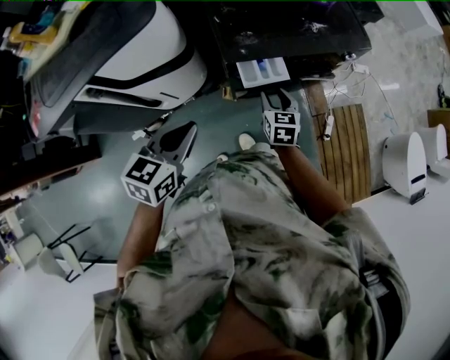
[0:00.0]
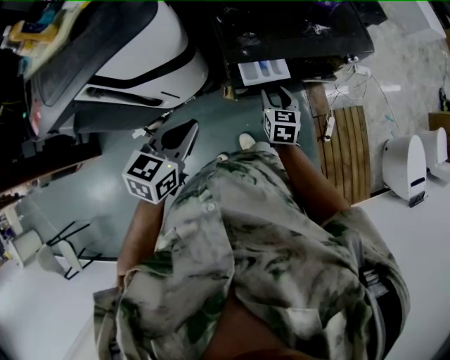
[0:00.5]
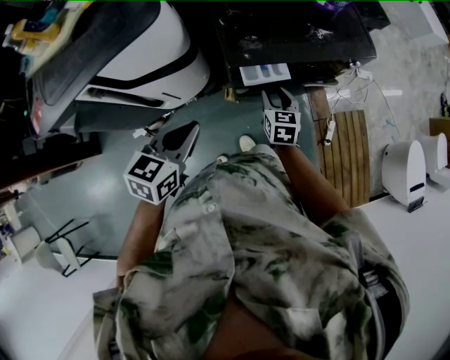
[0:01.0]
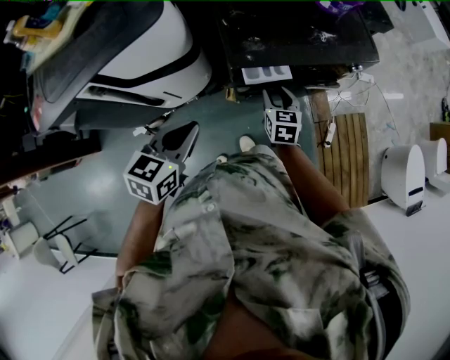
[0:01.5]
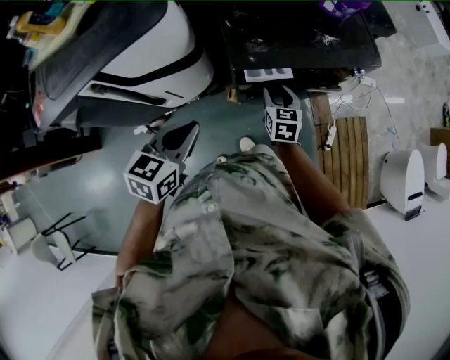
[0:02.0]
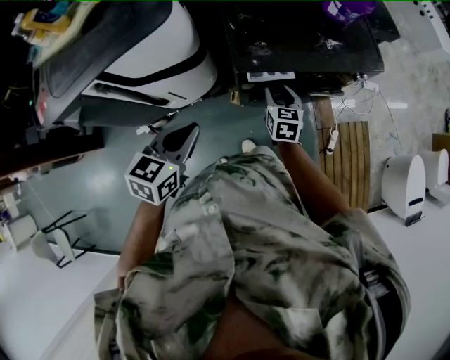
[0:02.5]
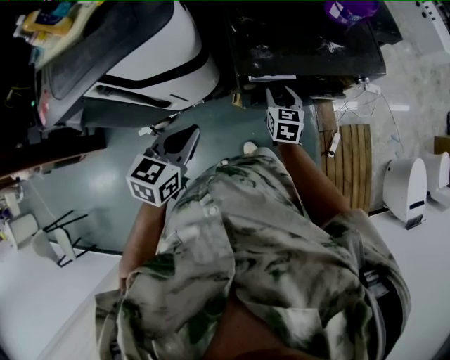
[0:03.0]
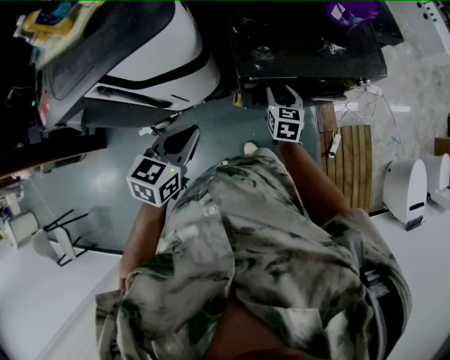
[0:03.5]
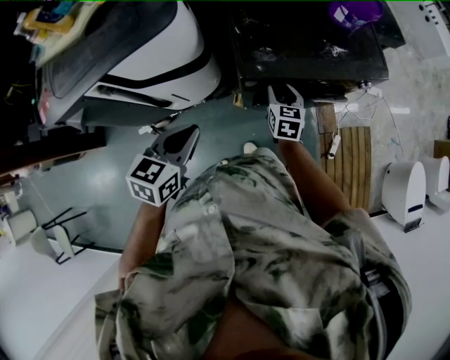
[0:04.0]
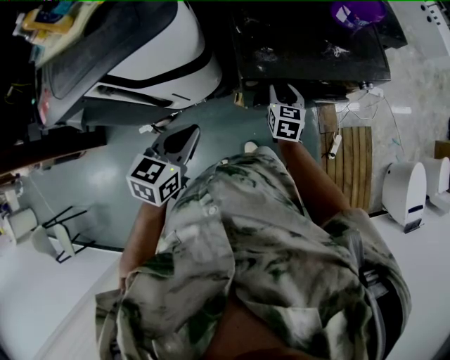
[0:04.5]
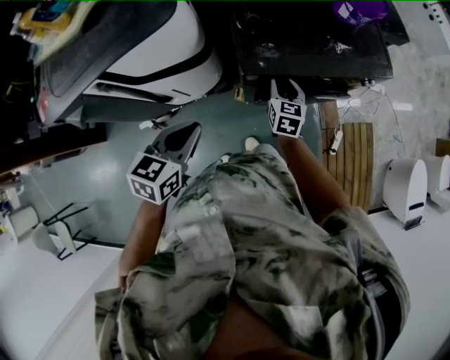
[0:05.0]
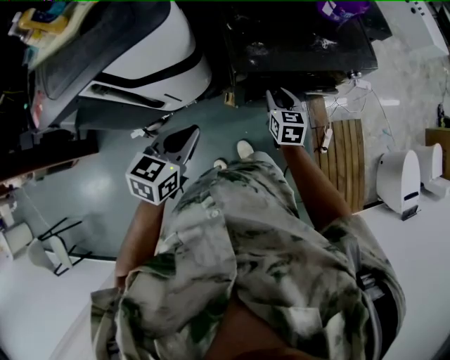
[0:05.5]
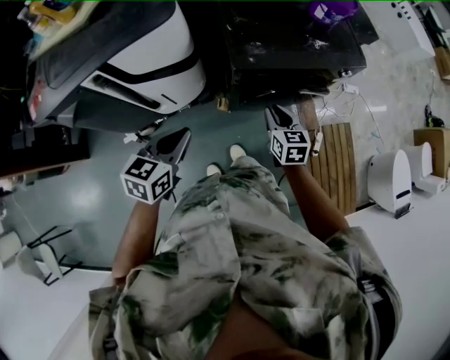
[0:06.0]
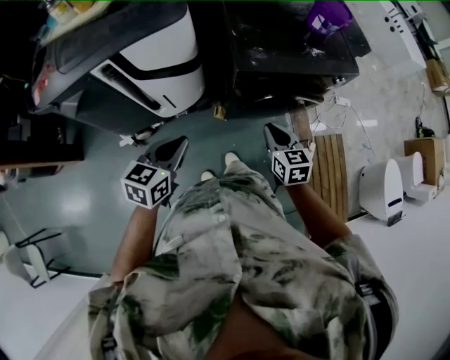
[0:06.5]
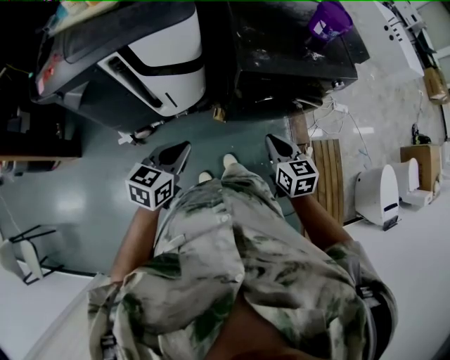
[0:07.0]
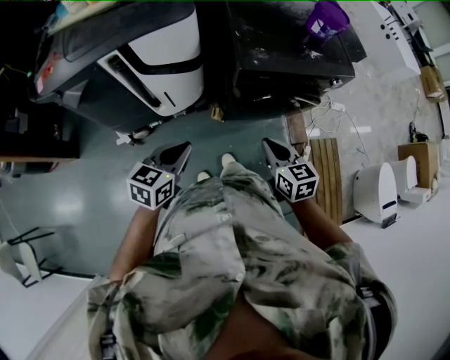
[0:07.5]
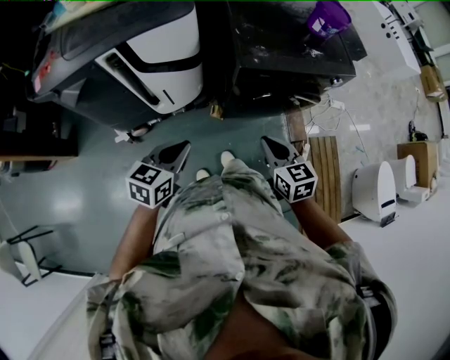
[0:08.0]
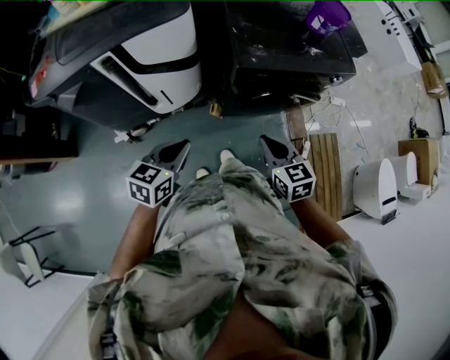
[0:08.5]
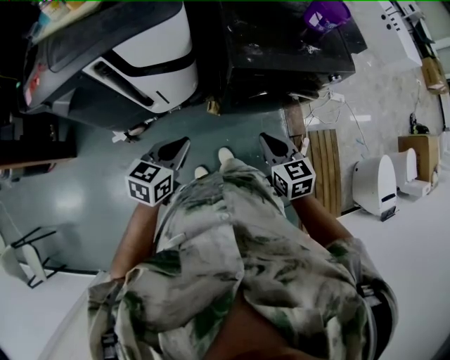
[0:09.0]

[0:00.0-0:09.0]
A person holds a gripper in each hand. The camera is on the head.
0:00.0 to 0:02.0: The grippers make only small movements.
0:02.0 to 0:04.5: There are only small adjustments of the grippers.
0:04.5 to 0:07.0: The right gripper shifts roughly 30 cm backward, and closes. The left gripper heads backward, covering approximately 20 cm.
0:07.0 to 0:09.0: The grippers stay close to where they were, moving slightly.

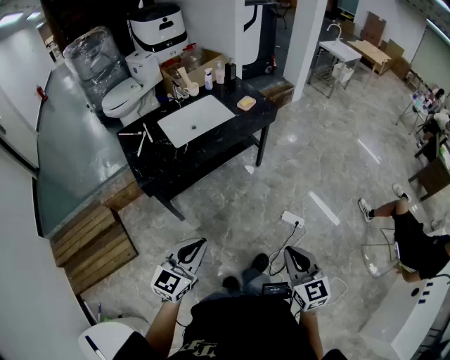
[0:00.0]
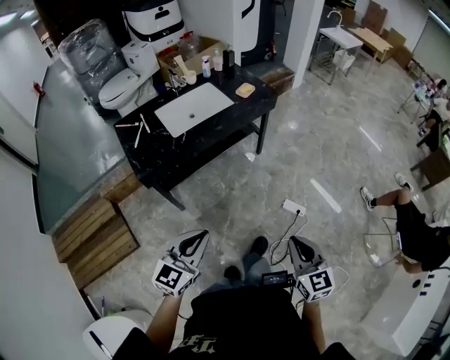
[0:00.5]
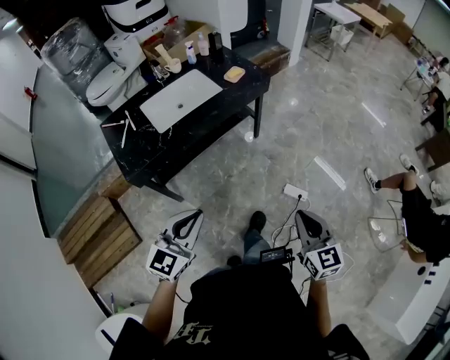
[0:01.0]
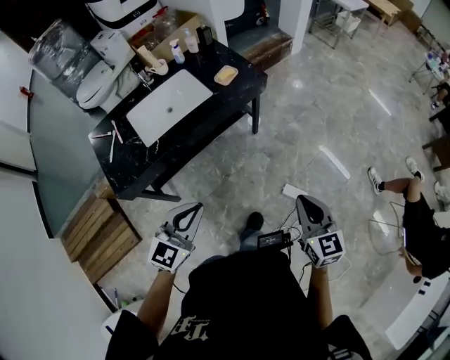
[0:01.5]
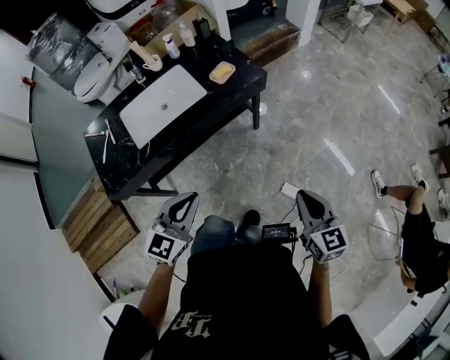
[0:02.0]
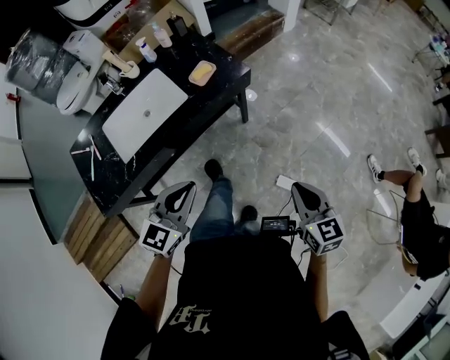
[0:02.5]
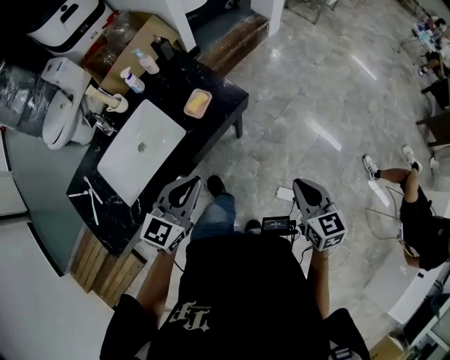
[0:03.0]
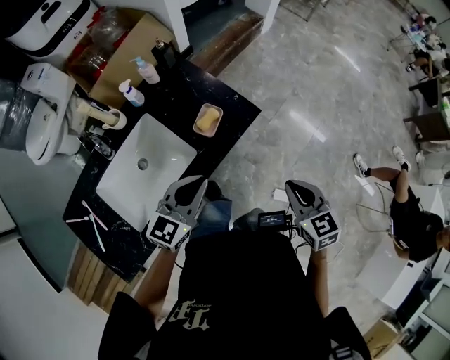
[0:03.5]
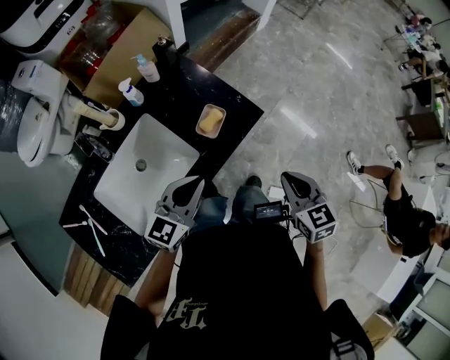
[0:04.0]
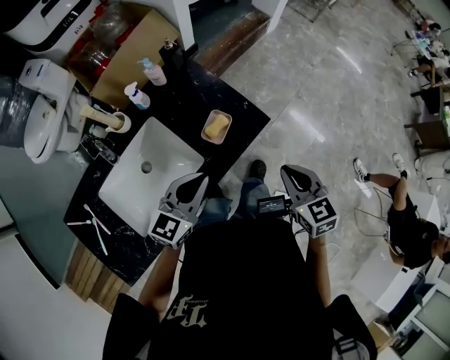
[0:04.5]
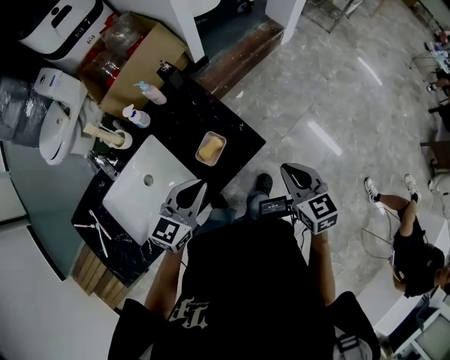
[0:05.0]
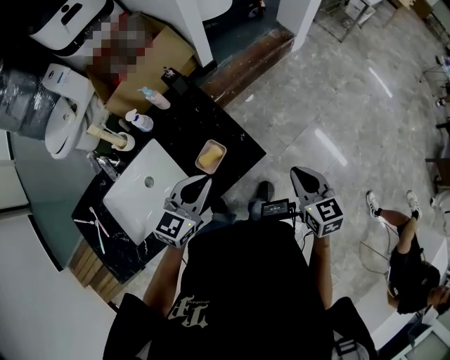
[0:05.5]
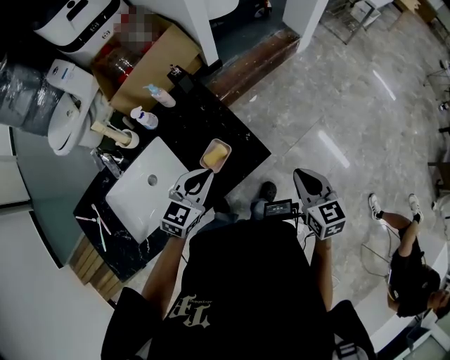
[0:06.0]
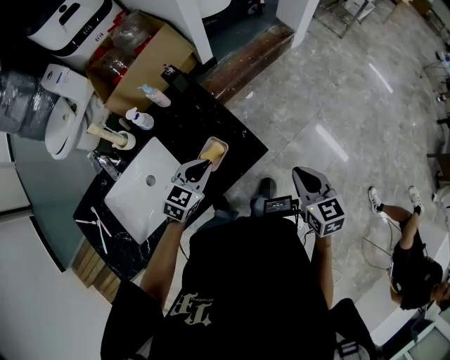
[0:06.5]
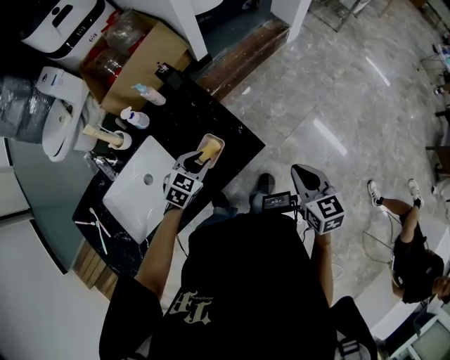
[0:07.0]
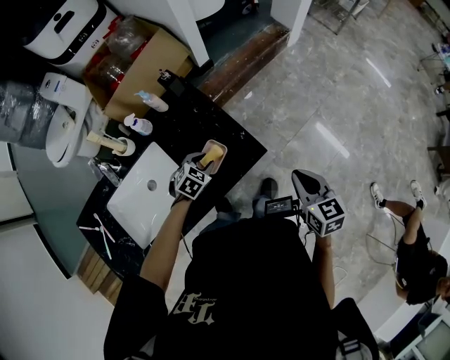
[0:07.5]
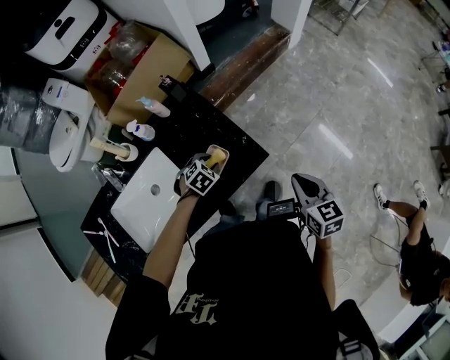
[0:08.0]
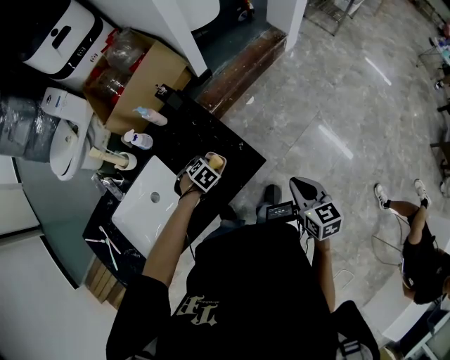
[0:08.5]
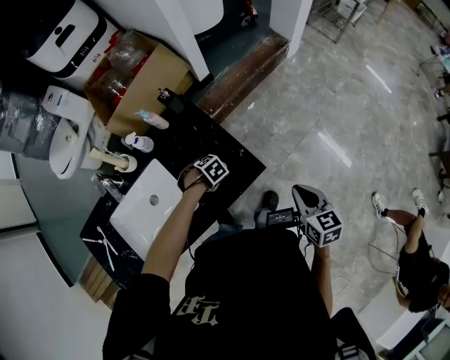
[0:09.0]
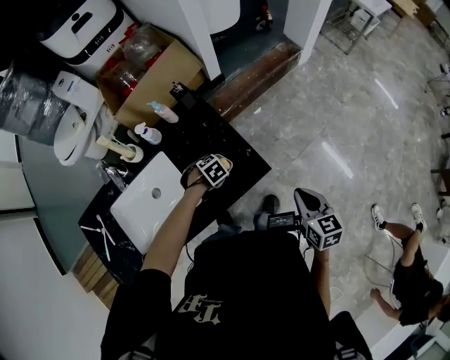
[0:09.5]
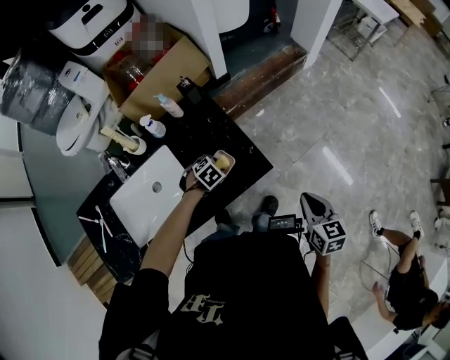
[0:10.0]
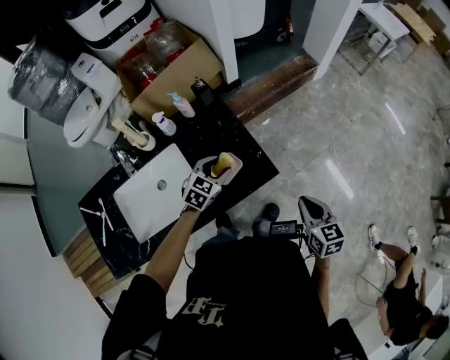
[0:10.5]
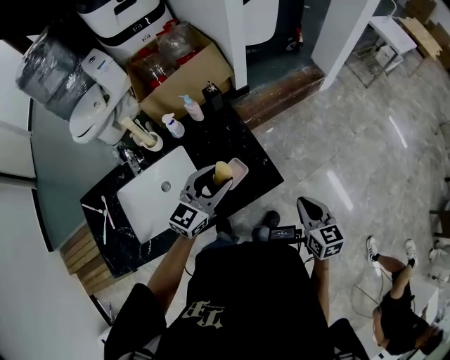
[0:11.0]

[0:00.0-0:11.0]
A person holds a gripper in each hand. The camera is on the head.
0:00.0 to 0:02.0: The right gripper moves forward and to the right, roughly 40 cm. Meanwhile the left gripper travels forward by roughly 35 cm.
0:02.0 to 0:03.5: The left gripper travels forward by approximately 35 cm, and changes its angle by some 20 degrees, while the right gripper heads forward and to the left, covering about 30 cm.
0:03.5 to 0:05.5: The two grippers go approximately 20 cm forward.
0:05.5 to 0:07.5: The left gripper goes about 20 cm downward, tilts its fingers some 40 degrees downward, and opens up.
0:07.5 to 0:09.0: The left gripper moves downward, some 5 cm, and rotates roughly 30 degrees.
0:09.0 to 0:11.0: The right gripper shifts by roughly 5 cm; the left gripper shifts roughly 30 cm upward, and tips its fingers upward by roughly 80 degrees.

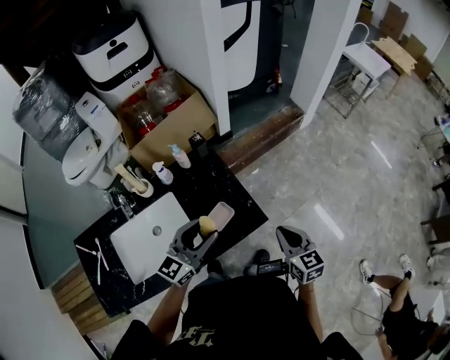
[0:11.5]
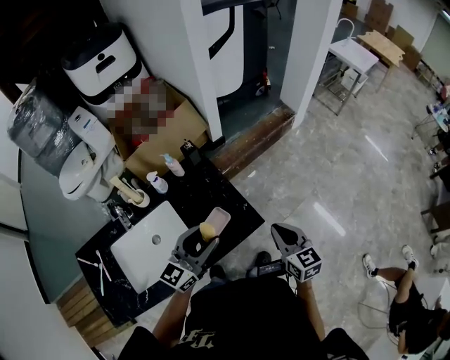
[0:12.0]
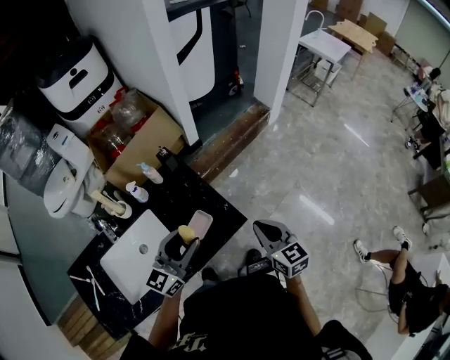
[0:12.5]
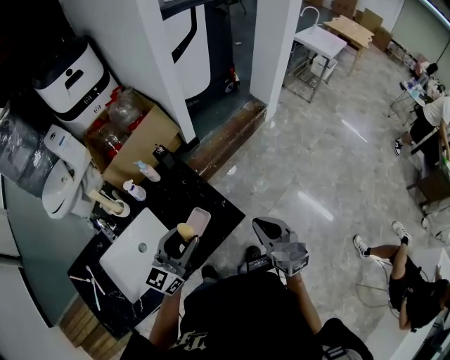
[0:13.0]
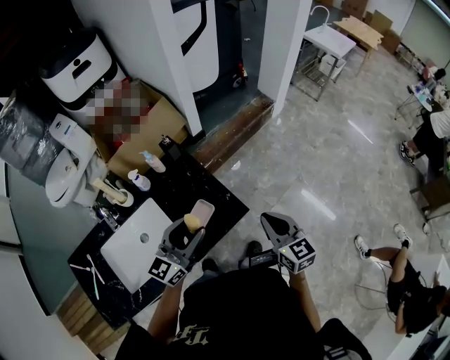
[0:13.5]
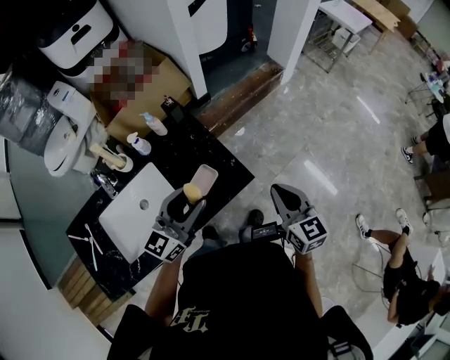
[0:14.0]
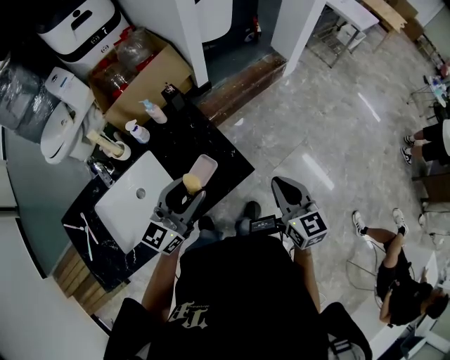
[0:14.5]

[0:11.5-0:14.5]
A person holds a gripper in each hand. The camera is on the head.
0:11.5 to 0:14.5: There are only small adjustments of the grippers.

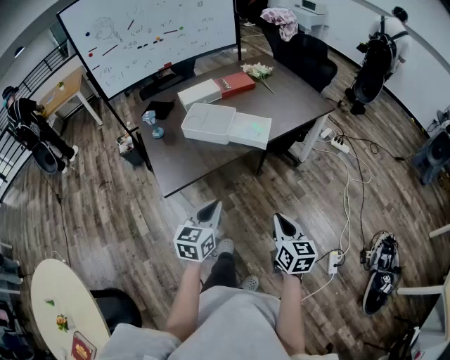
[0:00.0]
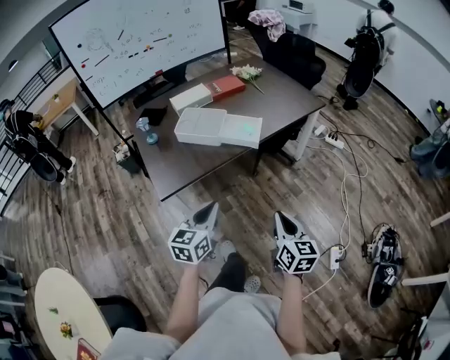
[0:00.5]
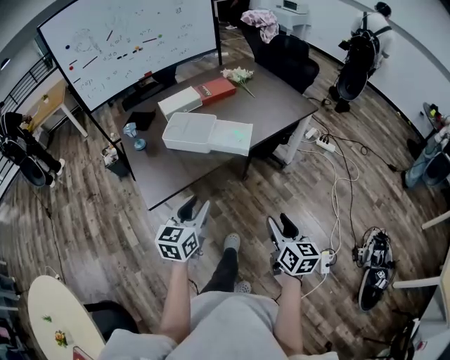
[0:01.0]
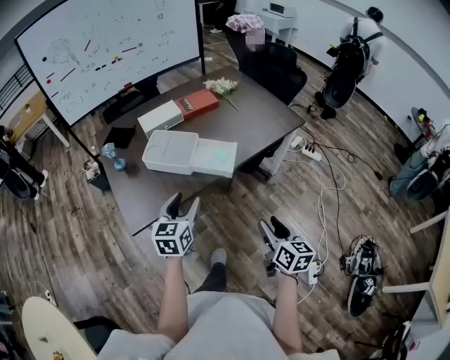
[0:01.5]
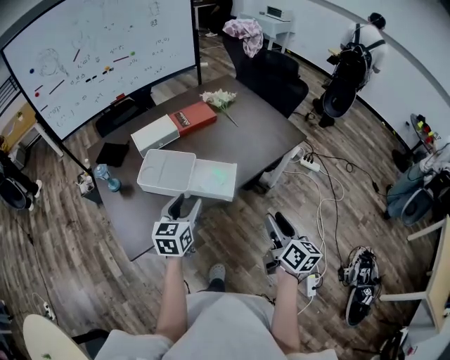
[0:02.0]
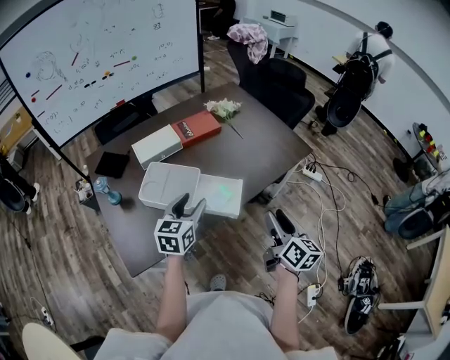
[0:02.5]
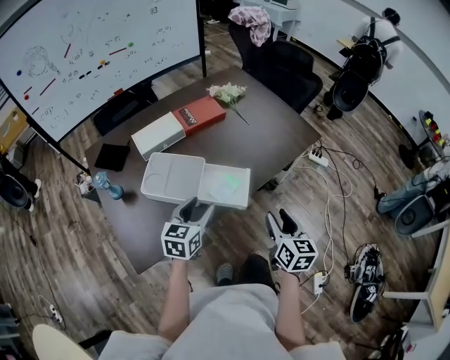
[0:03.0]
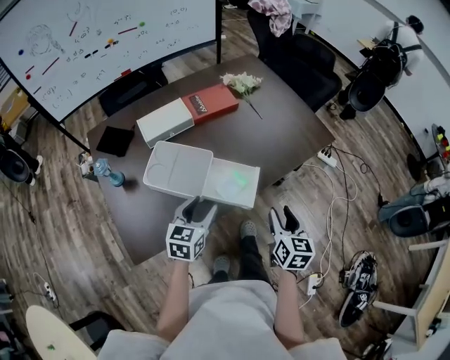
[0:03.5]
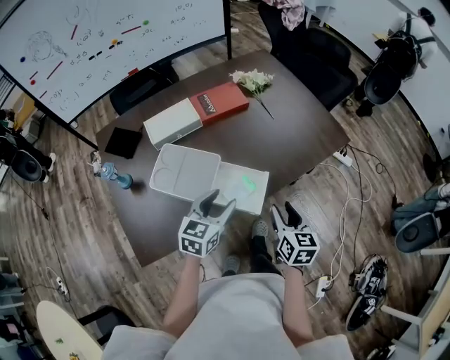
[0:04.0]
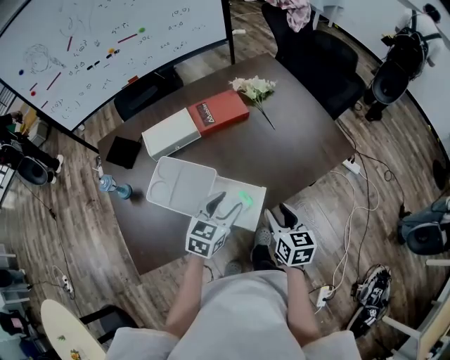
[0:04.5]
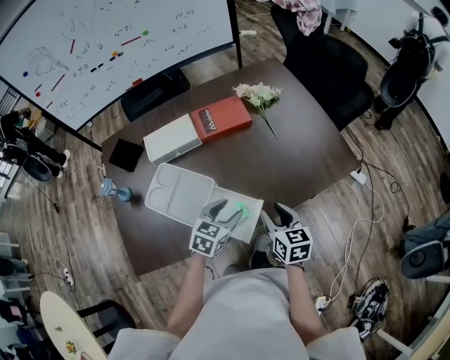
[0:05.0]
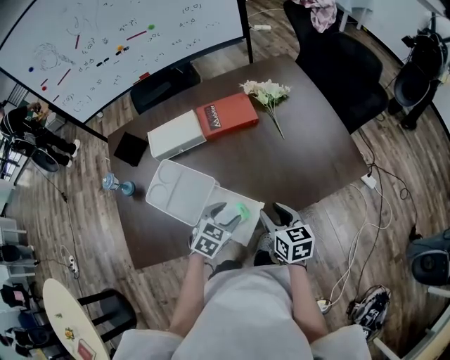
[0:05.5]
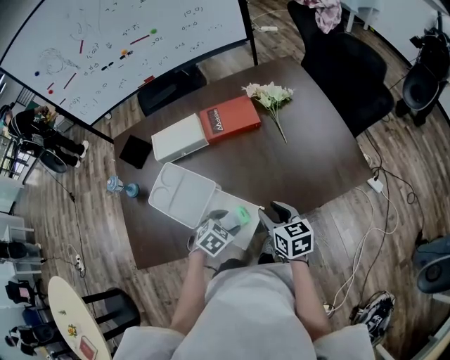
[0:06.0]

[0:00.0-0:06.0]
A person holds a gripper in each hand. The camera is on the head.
0:00.0 to 0:02.0: The grippers both shift forward by some 25 cm. The left gripper opens, while the right gripper swivels about 20 degrees, and opens its fingers.
0:02.0 to 0:04.0: The left gripper travels forward and downward by approximately 15 cm, while the right gripper shifts approximately 20 cm forward, downward and to the left, and turns by approximately 30 degrees.
0:04.0 to 0:06.0: The left gripper travels downward, to the right and forward by about 20 cm, and angles its fingers downward, by about 40 degrees, while the right gripper is displaced forward by about 15 cm, and changes its angle by roughly 30 degrees.
